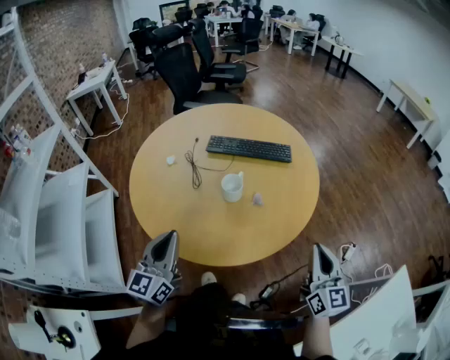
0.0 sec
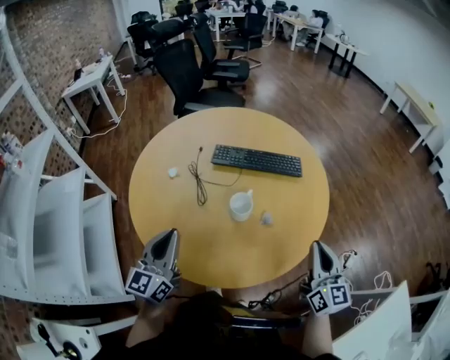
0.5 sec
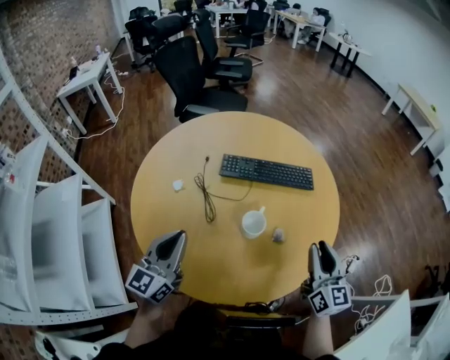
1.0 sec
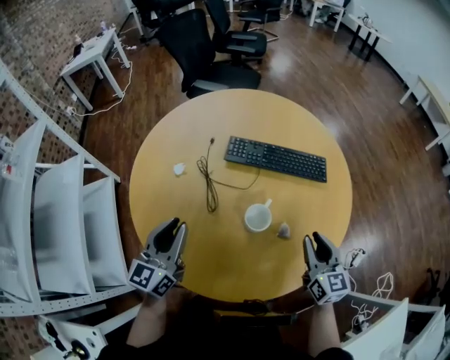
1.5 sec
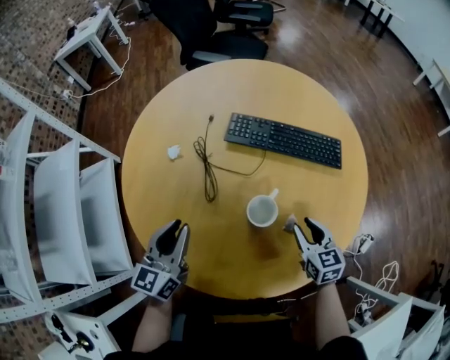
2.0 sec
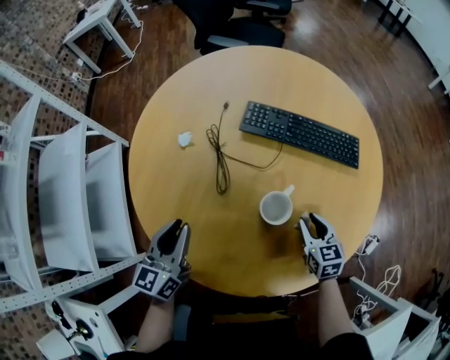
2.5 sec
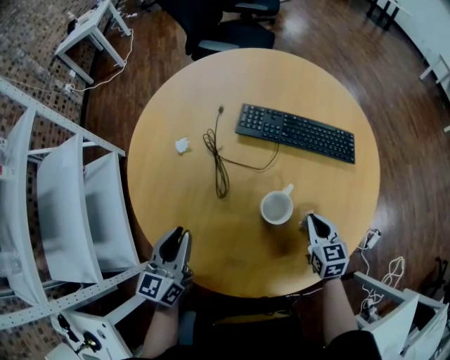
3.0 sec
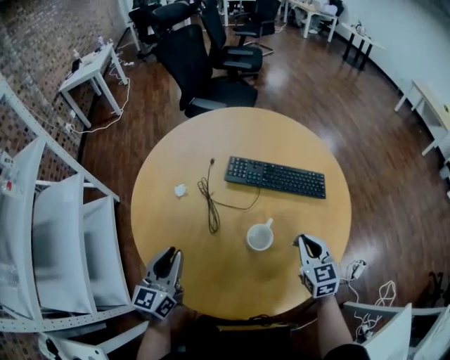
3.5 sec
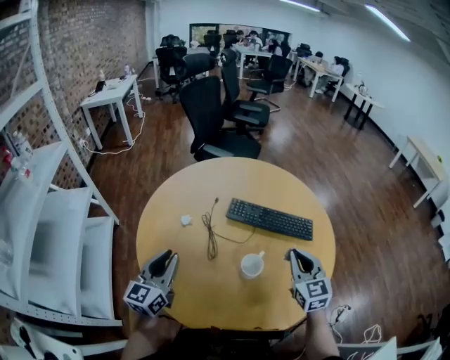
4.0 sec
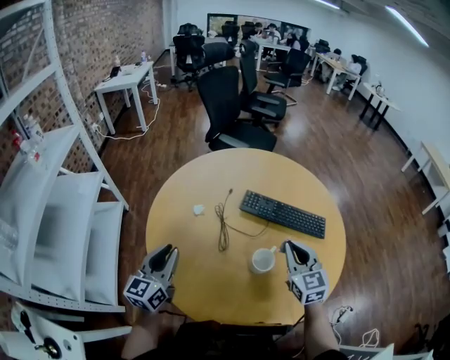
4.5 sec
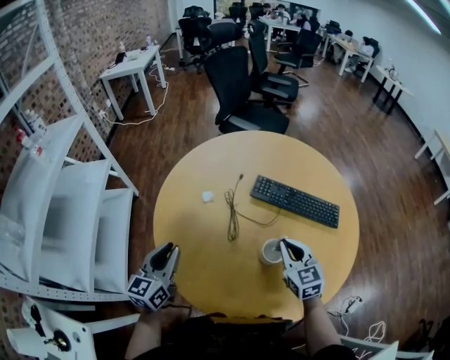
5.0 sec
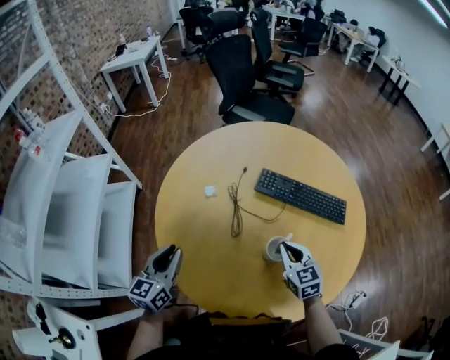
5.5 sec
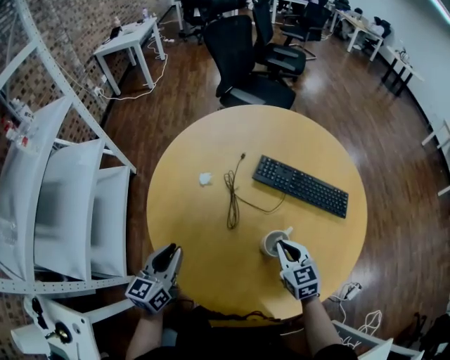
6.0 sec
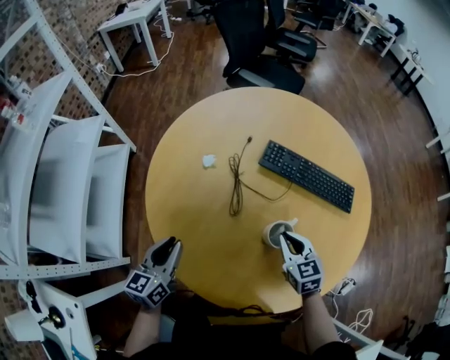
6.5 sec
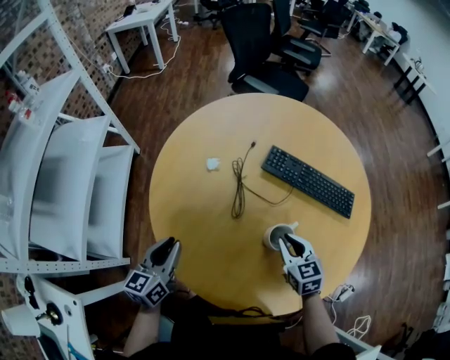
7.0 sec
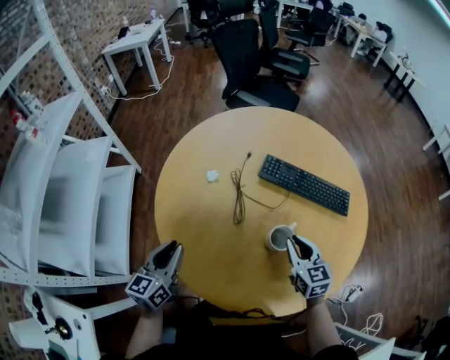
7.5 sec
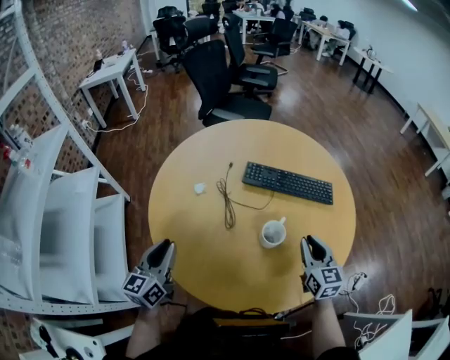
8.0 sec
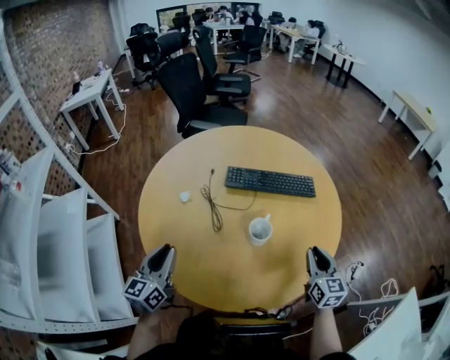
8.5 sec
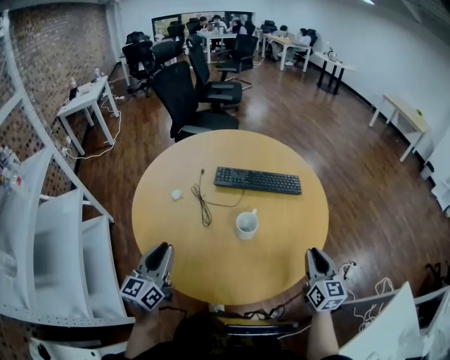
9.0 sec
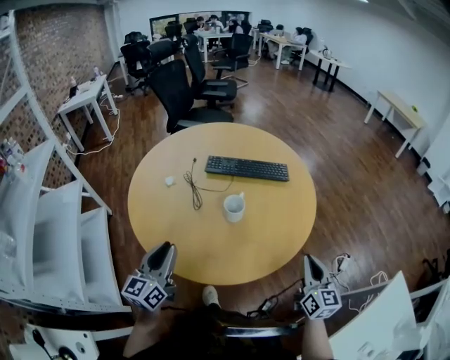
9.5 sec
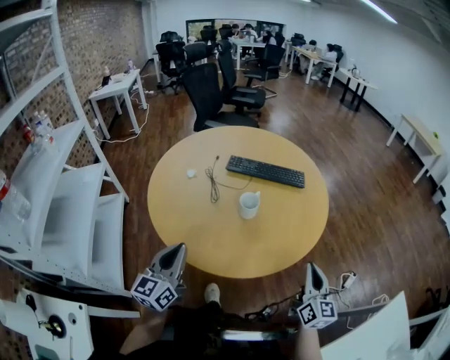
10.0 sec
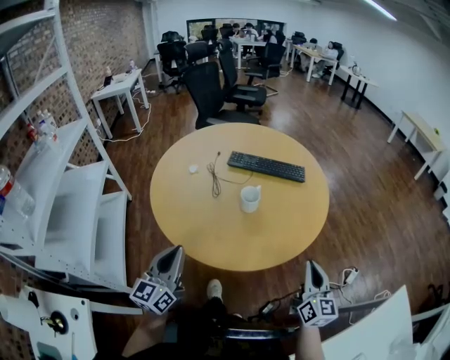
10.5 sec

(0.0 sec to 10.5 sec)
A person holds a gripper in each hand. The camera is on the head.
0.0 sec - 2.0 sec: The right gripper moves forward, downward and to the left, some 35 cm, tips its fingers downward by roughly 30 degrees, and opens. Meanwhile the left gripper is displaced forward and downward by some 20 cm.
2.0 sec - 4.0 sec: The left gripper goes about 10 cm upward and to the left, while the right gripper moves upward, about 20 cm, rotates some 30 degrees, and closes up.
4.0 sec - 6.5 sec: The right gripper heads downward and to the left, covering some 15 cm, and swivels approximately 30 degrees; the left gripper travels downward by approximately 10 cm, and swivels some 20 degrees.
6.5 sec - 8.5 sec: The left gripper moves upward, some 5 cm, and turns by roughly 20 degrees. The right gripper heads backward, to the right and upward, covering some 20 cm, and changes its angle by roughly 40 degrees.
8.5 sec - 10.5 sec: The left gripper heads backward and to the right, covering about 25 cm, while the right gripper is displaced backward by approximately 20 cm.

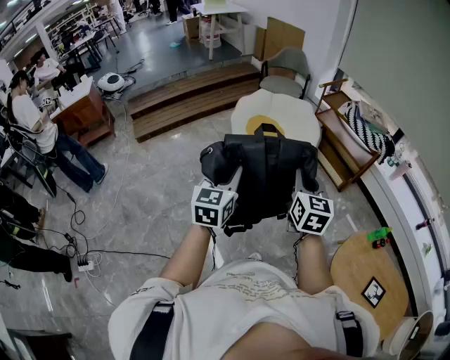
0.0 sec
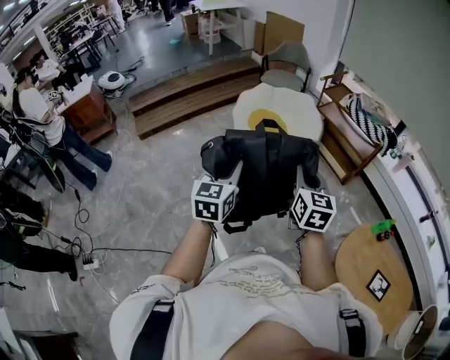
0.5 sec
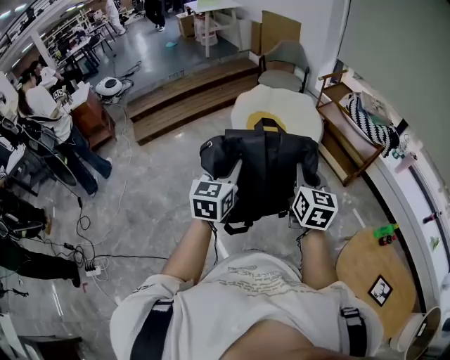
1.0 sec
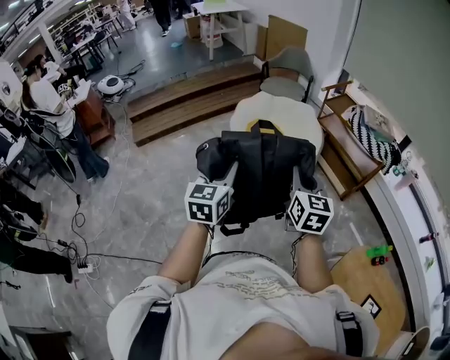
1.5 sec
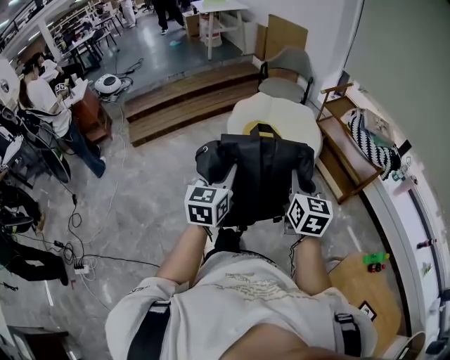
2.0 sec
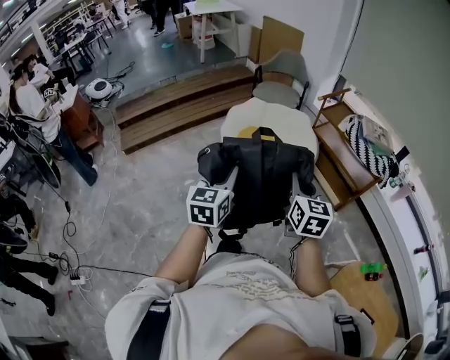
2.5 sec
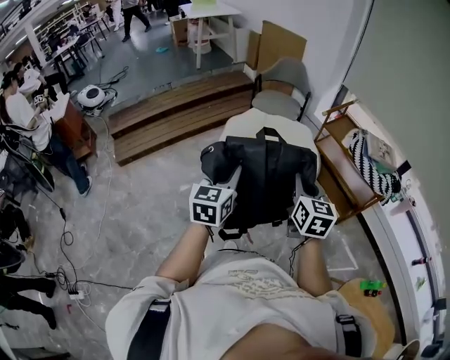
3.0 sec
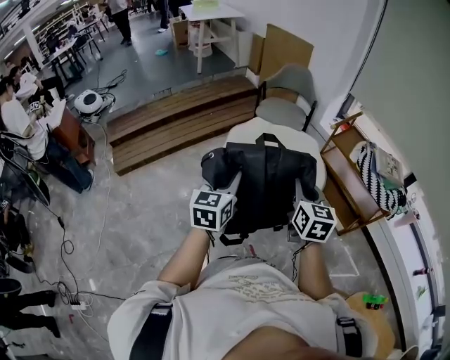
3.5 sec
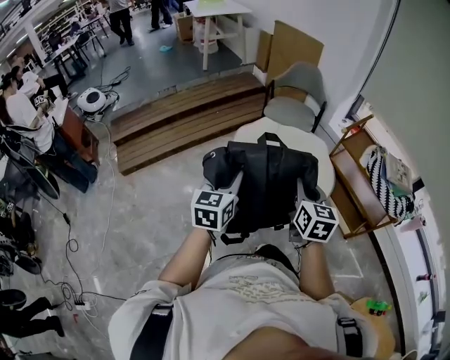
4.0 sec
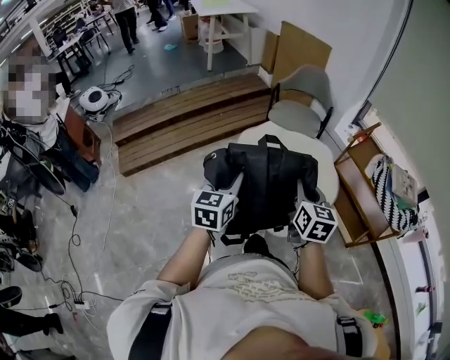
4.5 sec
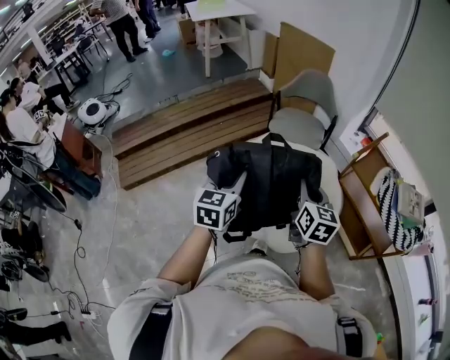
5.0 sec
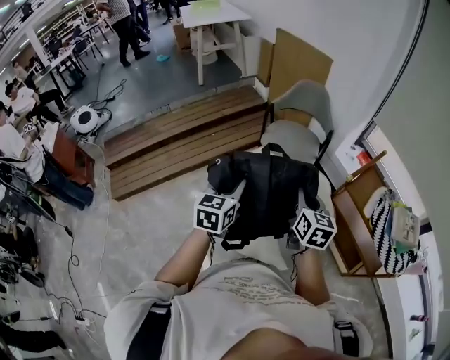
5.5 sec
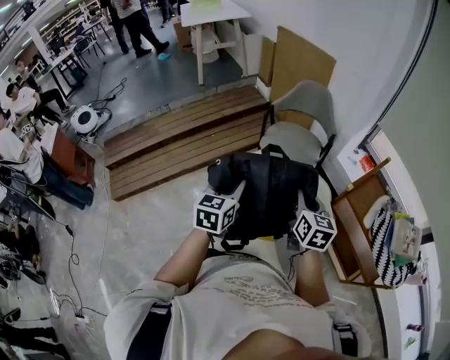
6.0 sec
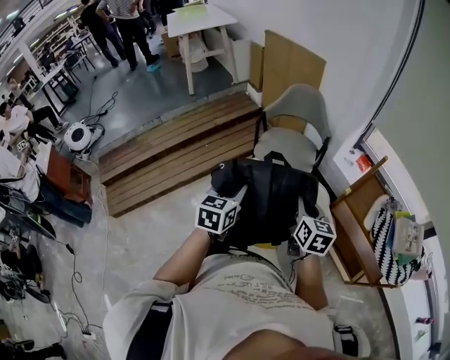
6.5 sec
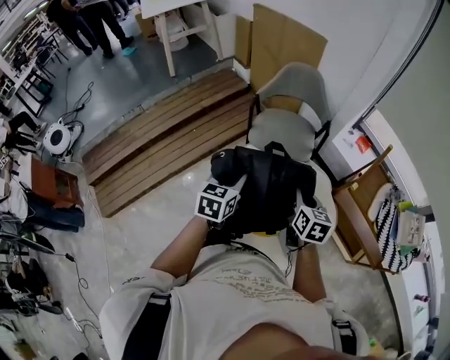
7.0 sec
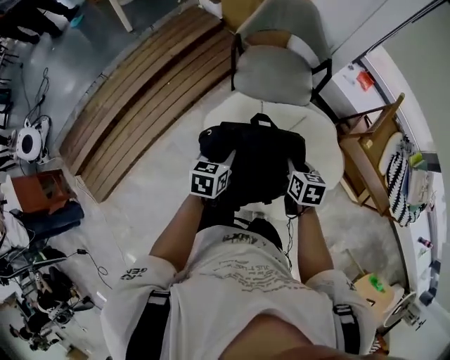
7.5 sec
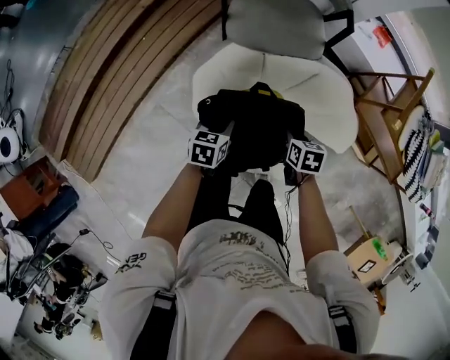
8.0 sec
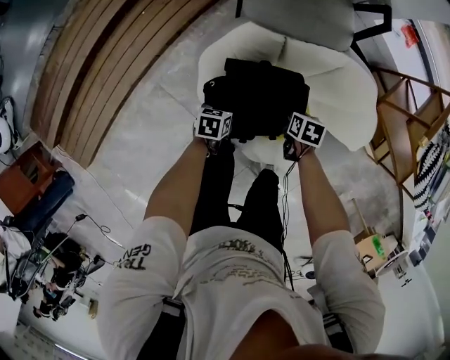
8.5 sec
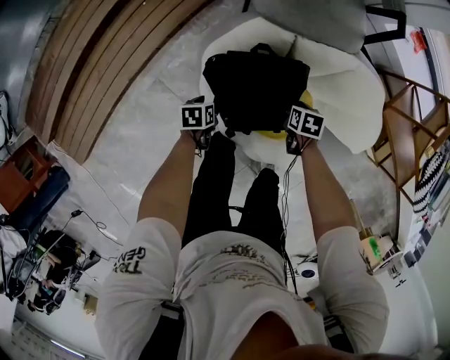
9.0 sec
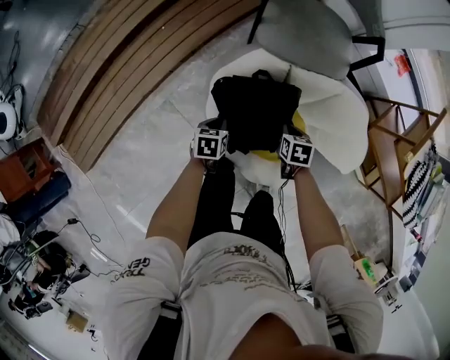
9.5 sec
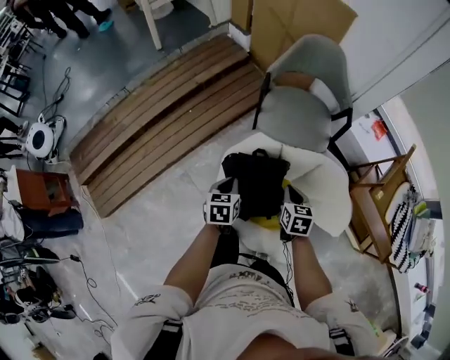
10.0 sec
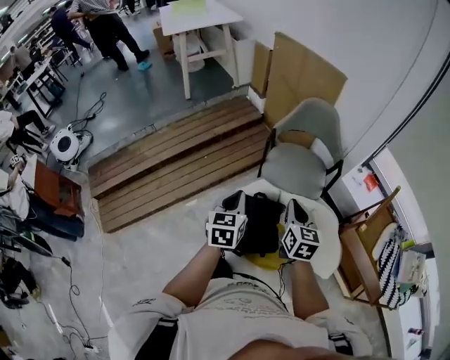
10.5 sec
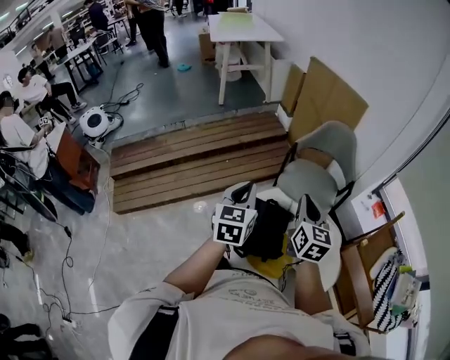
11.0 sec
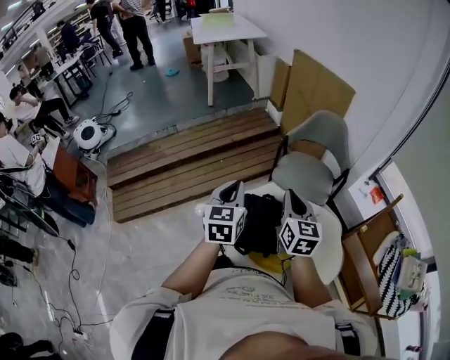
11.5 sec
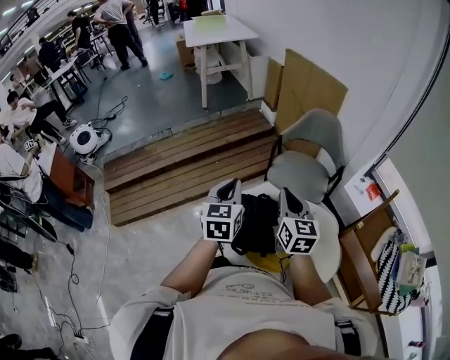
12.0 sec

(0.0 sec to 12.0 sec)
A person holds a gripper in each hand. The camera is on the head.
0.0 sec - 2.0 sec: Both grippers travel together forward, approximately 15 cm.
2.0 sec - 4.0 sec: The two grippers go some 30 cm forward.
4.0 sec - 6.0 sec: Both grippers move forward, about 35 cm.
6.0 sec - 8.0 sec: The left gripper travels downward and forward by some 40 cm, and swivels roughly 40 degrees. Meanwhile the right gripper travels downward by about 35 cm, and tilts its fingers roughly 40 degrees downward.
8.0 sec - 10.0 sec: The right gripper heads upward, covering about 10 cm, rotates about 20 degrees, and opens and closes again, while the left gripper reaches some 20 cm downward, then returns, turns by roughly 20 degrees, and closes up.
10.0 sec - 12.0 sec: The two grippers go approximately 30 cm upward. The right gripper angles its fingers upward, by roughly 40 degrees. The left gripper turns by some 30 degrees.

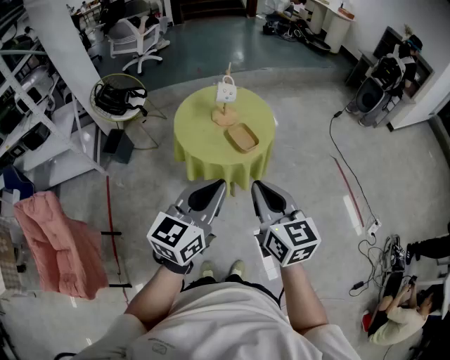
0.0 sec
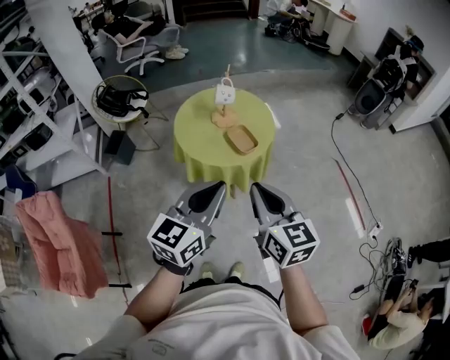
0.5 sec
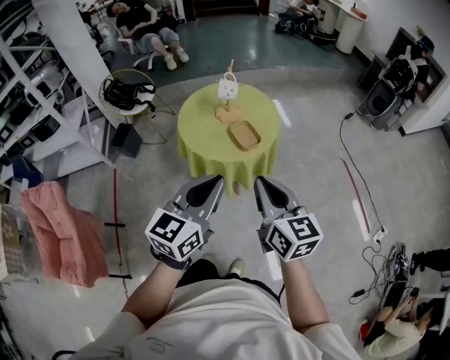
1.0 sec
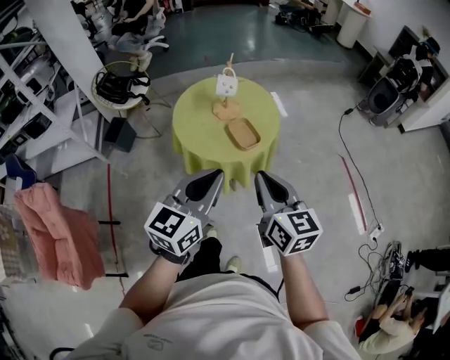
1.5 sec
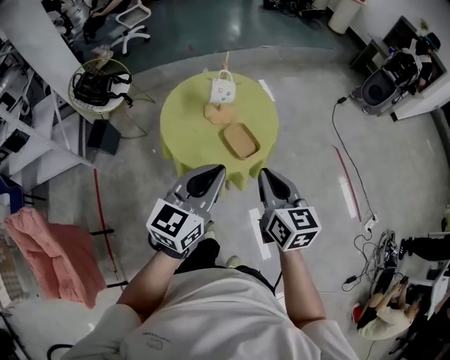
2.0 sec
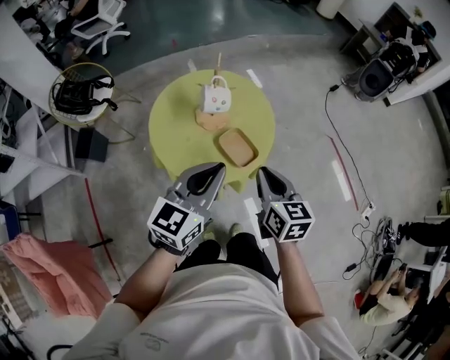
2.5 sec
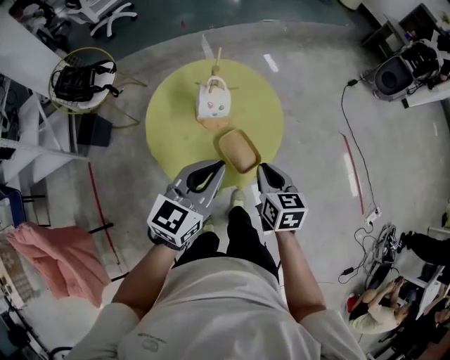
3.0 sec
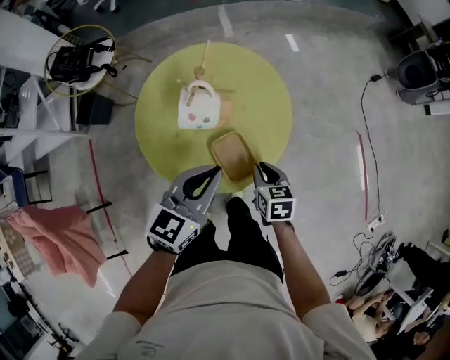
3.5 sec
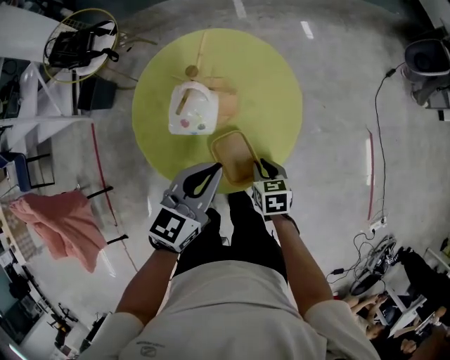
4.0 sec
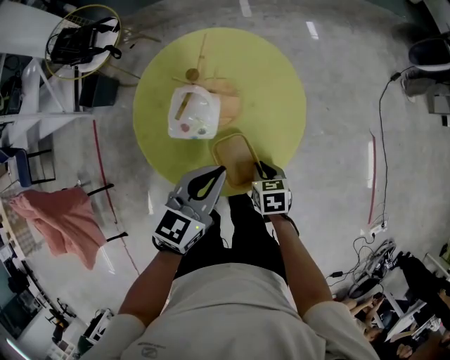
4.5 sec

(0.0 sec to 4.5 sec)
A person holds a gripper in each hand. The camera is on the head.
0.0 sec - 2.0 sec: The right gripper moves forward and downward, roughly 20 cm. The left gripper is displaced forward by some 20 cm.
2.0 sec - 4.5 sec: The left gripper travels forward and downward by some 30 cm. The right gripper shifts approximately 40 cm downward and forward, and tips its fingers downward by some 40 degrees.
